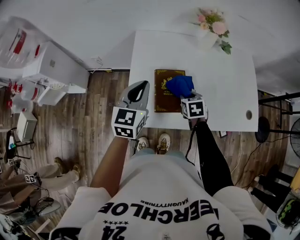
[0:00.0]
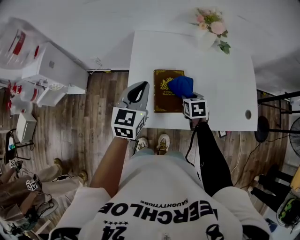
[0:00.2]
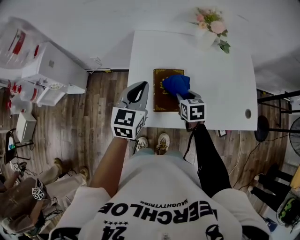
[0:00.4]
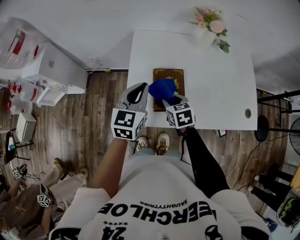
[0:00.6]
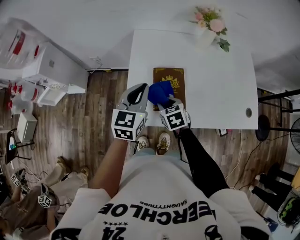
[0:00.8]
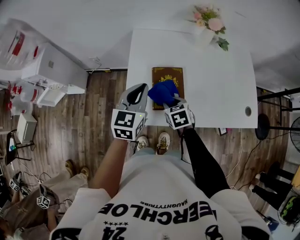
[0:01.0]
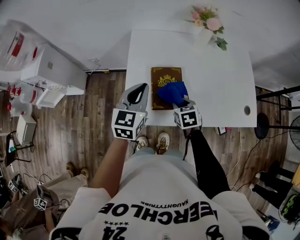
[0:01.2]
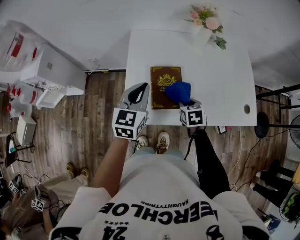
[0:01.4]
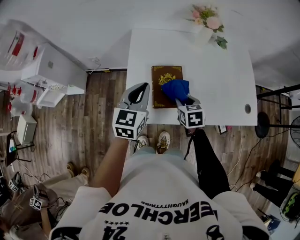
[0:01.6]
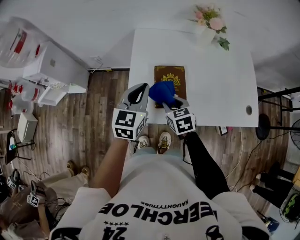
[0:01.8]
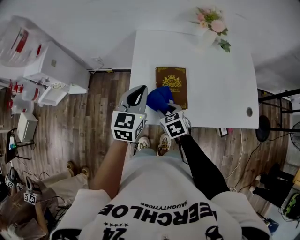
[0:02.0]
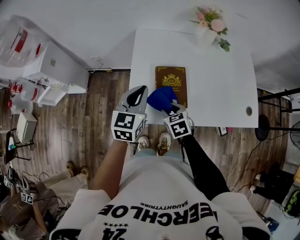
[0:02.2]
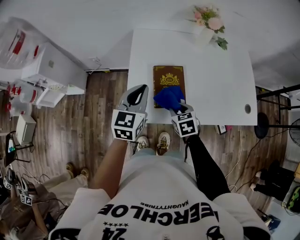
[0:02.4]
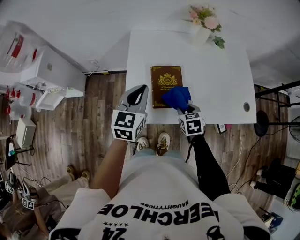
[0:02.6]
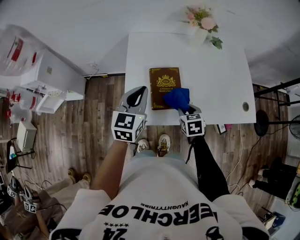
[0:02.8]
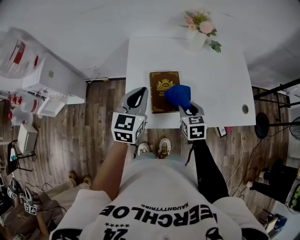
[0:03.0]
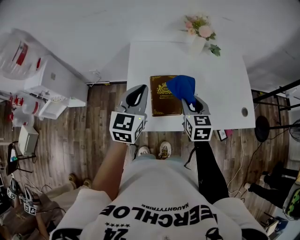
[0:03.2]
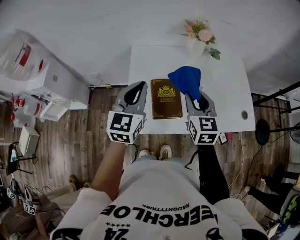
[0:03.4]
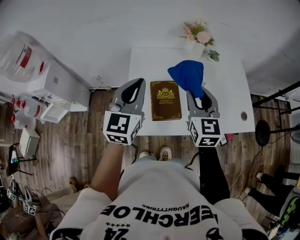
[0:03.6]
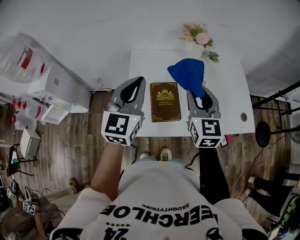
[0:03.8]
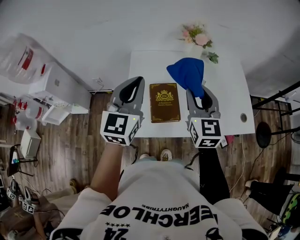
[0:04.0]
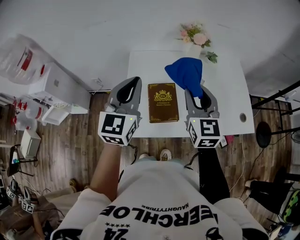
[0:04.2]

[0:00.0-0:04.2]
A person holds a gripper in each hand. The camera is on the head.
0:00.0 to 0:01.4: The right gripper heads backward, covering some 5 cm, and travels to the left and back again, some 10 cm each way.
0:01.4 to 0:02.8: The right gripper moves some 15 cm to the left and comes back.
0:02.8 to 0:04.2: The left gripper travels upward by about 15 cm, while the right gripper shifts roughly 30 cm upward, and angles its fingers upward, by roughly 40 degrees.

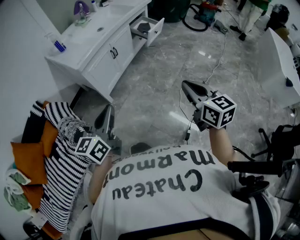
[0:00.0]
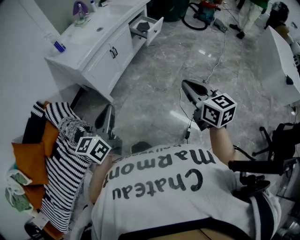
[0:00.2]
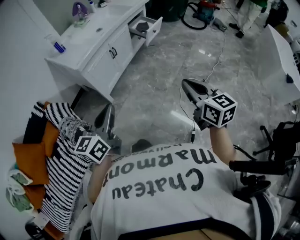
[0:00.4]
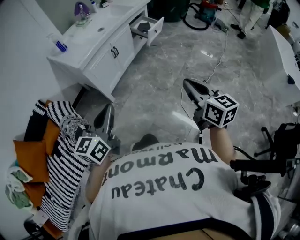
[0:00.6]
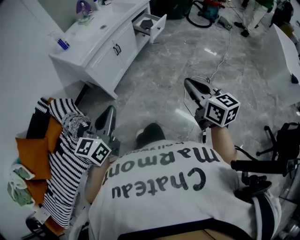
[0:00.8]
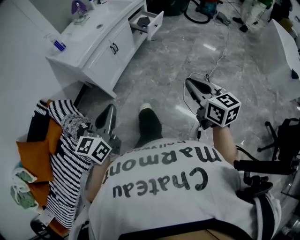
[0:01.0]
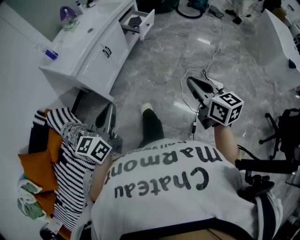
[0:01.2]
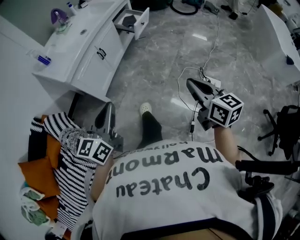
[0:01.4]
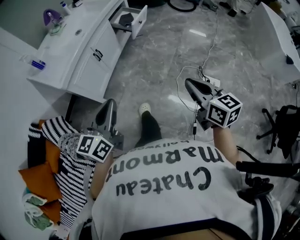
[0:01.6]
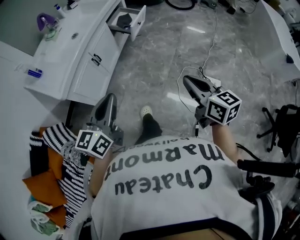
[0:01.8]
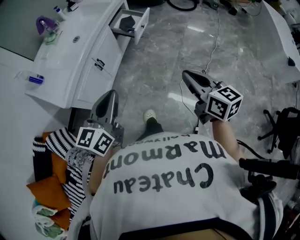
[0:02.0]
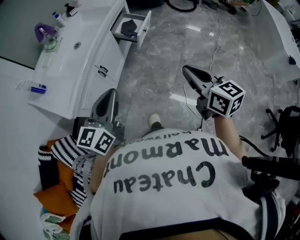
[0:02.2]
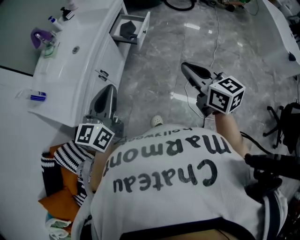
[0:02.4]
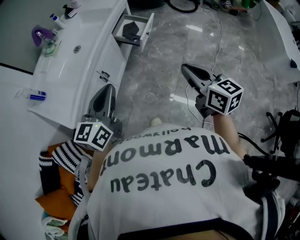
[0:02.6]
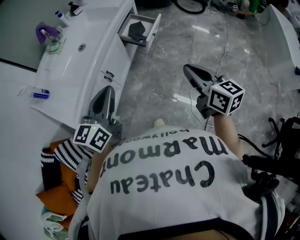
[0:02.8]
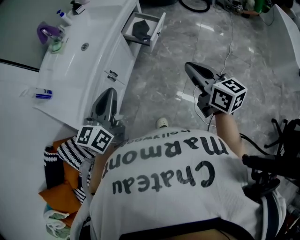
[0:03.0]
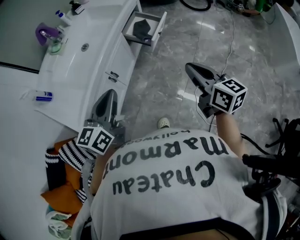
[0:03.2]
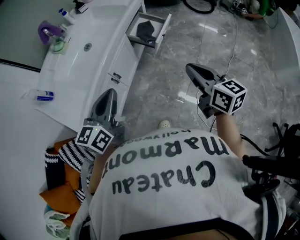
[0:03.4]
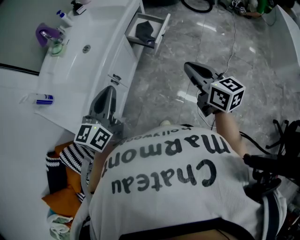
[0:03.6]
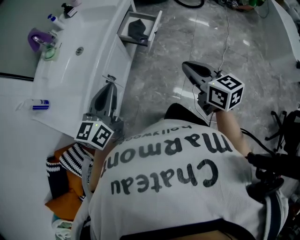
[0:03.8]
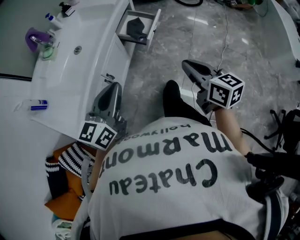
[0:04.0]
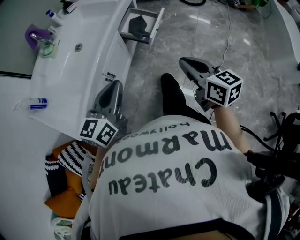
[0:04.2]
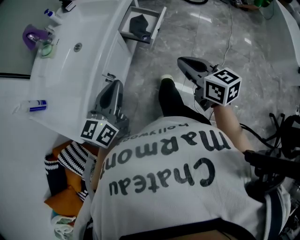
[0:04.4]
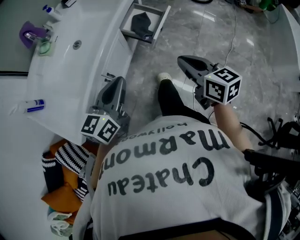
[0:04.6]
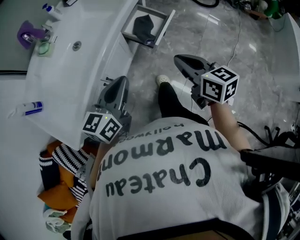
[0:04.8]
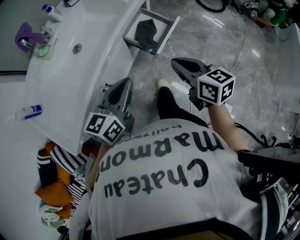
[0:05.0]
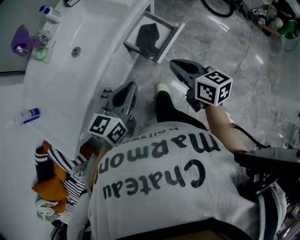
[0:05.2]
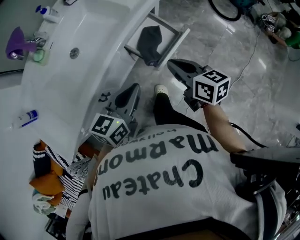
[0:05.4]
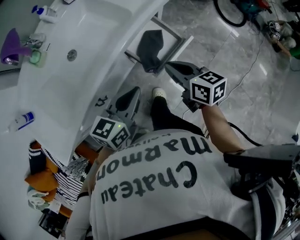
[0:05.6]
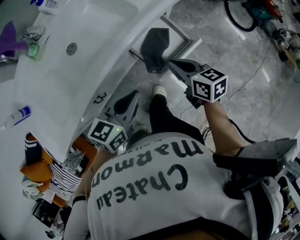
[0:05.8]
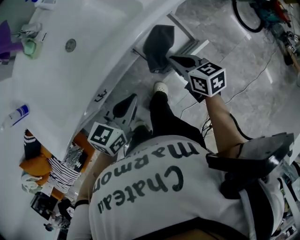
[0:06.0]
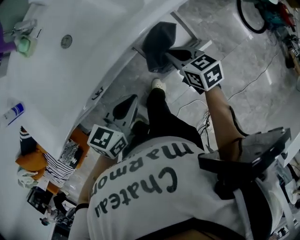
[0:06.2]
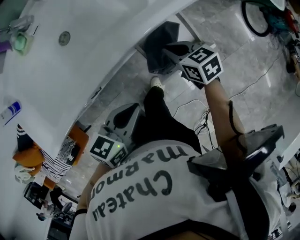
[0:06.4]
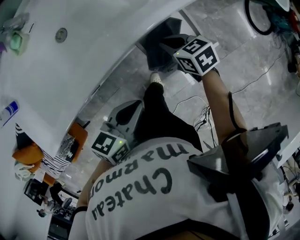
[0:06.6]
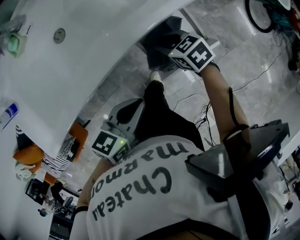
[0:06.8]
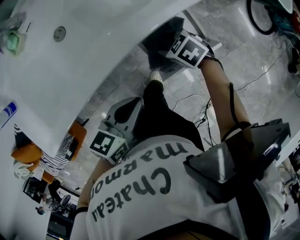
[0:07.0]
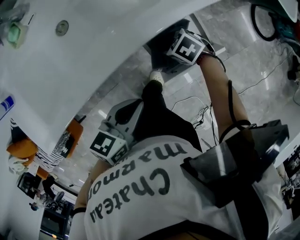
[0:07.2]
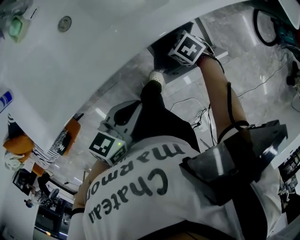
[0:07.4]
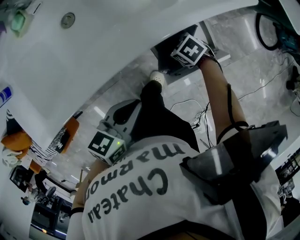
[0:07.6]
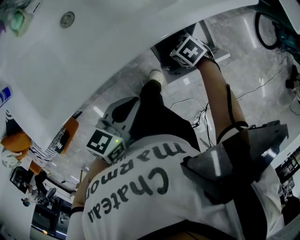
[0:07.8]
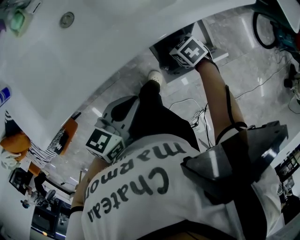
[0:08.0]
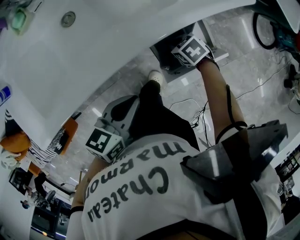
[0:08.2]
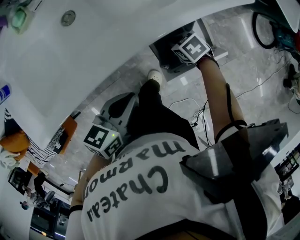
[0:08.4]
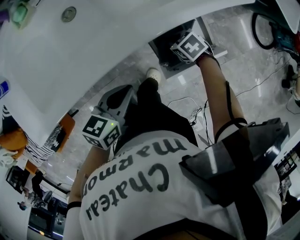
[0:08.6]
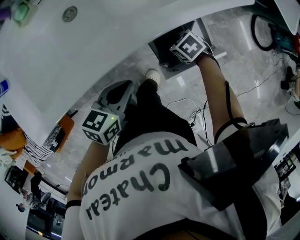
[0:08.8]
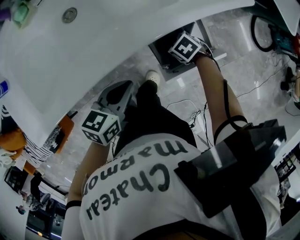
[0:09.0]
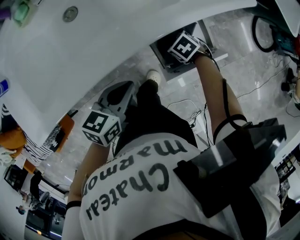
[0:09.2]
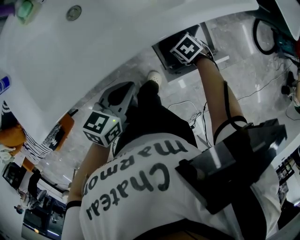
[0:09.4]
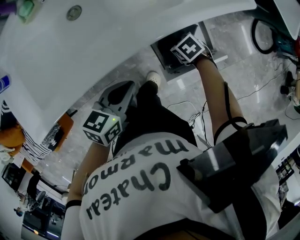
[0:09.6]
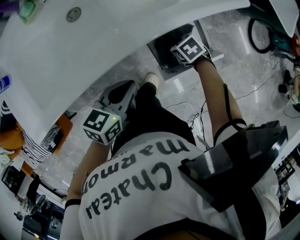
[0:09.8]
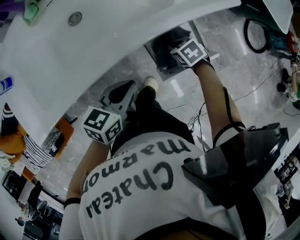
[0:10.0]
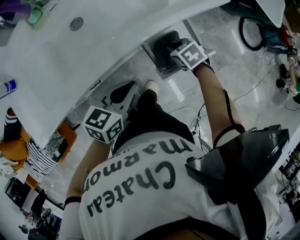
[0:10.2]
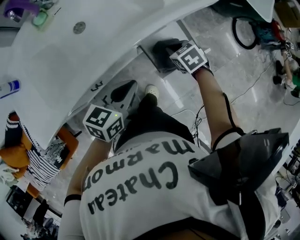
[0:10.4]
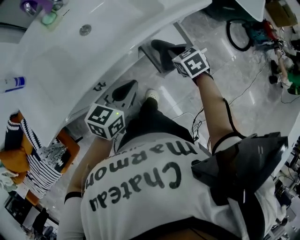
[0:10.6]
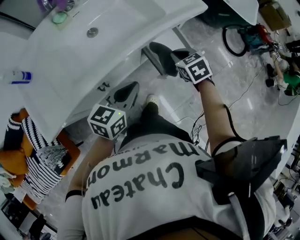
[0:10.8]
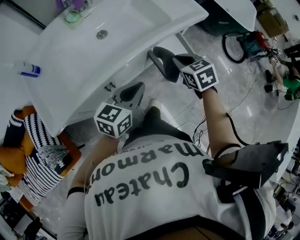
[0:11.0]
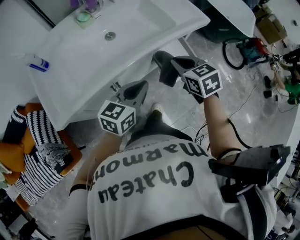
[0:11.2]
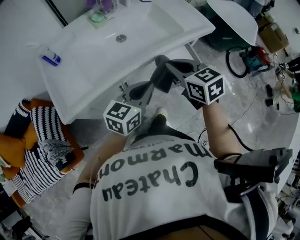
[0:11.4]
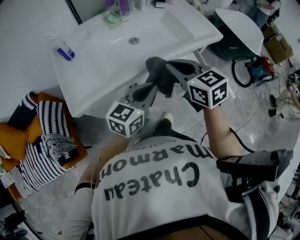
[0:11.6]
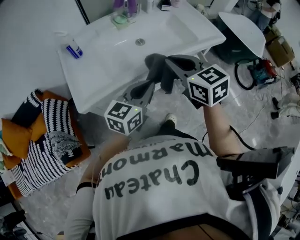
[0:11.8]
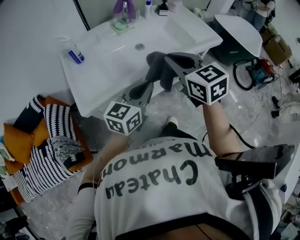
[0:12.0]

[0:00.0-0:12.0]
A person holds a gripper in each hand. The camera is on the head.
0:00.0 to 0:01.6: Both grippers move forward and to the right, roughly 10 cm.
0:01.6 to 0:03.0: Both grippers move forward, some 30 cm.
0:03.0 to 0:04.4: Both grippers travel together forward, some 10 cm.
0:04.4 to 0:06.0: The left gripper is displaced forward, downward and to the right by about 30 cm, and rotates roughly 30 degrees. The right gripper is displaced forward and downward by roughly 40 cm, and turns by roughly 40 degrees.
0:06.0 to 0:07.6: The right gripper travels downward by roughly 20 cm, changes its angle by roughly 50 degrees, and opens its fingers.
0:07.6 to 0:09.0: The left gripper changes place by about 5 cm, while the right gripper closes its fingers.
0:09.0 to 0:10.4: The right gripper heads upward, covering about 15 cm, rotates roughly 30 degrees, and closes. Meanwhile the left gripper shifts some 5 cm upward.
0:10.4 to 0:12.0: The right gripper heads upward, to the left and backward, covering some 50 cm, and angles its fingers upward, by roughly 40 degrees, while the left gripper heads to the left, upward and backward, covering about 25 cm, and rotates roughly 30 degrees.

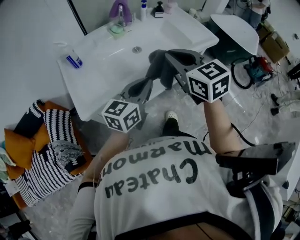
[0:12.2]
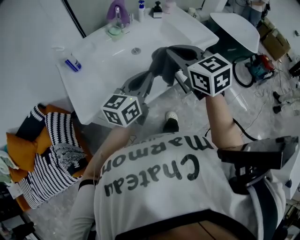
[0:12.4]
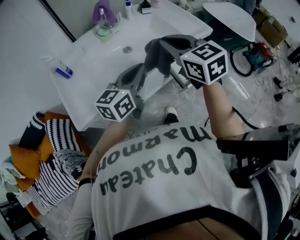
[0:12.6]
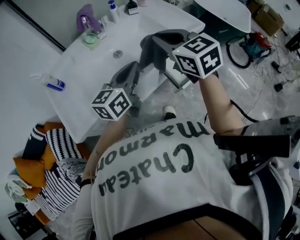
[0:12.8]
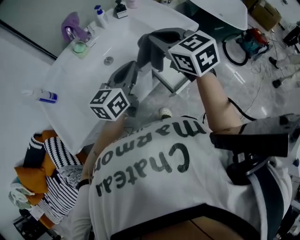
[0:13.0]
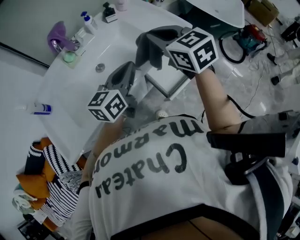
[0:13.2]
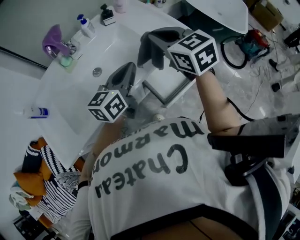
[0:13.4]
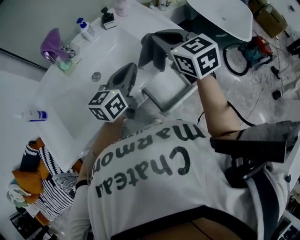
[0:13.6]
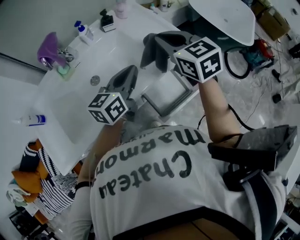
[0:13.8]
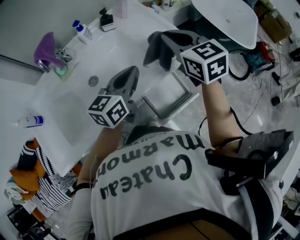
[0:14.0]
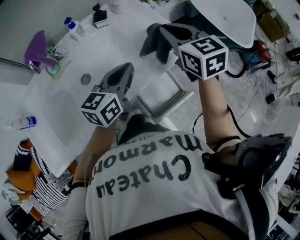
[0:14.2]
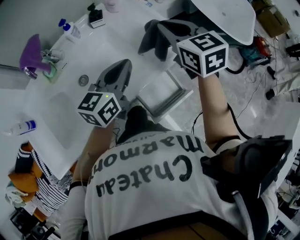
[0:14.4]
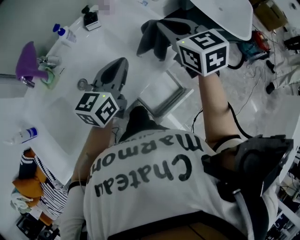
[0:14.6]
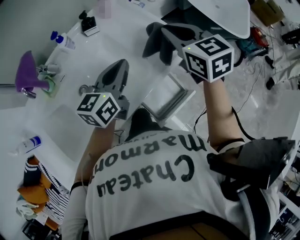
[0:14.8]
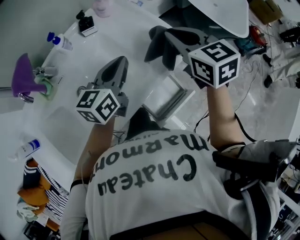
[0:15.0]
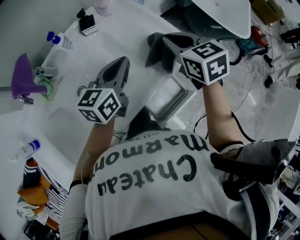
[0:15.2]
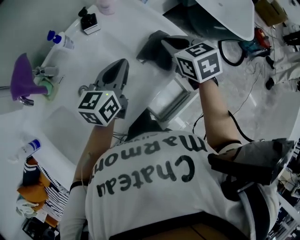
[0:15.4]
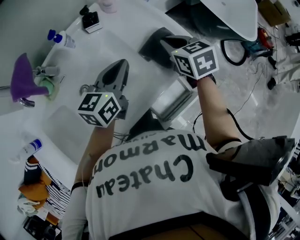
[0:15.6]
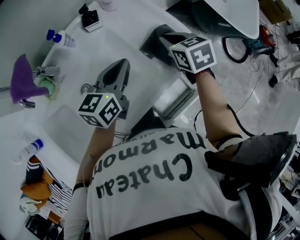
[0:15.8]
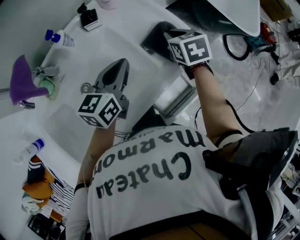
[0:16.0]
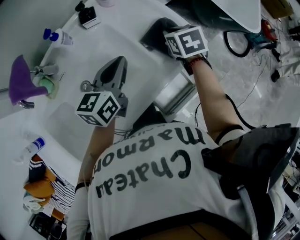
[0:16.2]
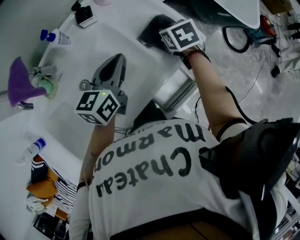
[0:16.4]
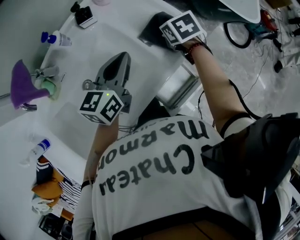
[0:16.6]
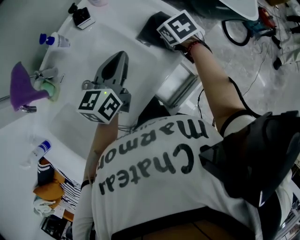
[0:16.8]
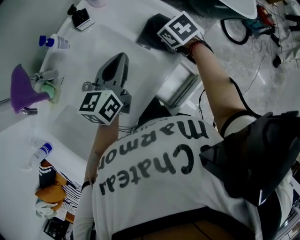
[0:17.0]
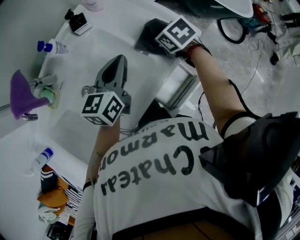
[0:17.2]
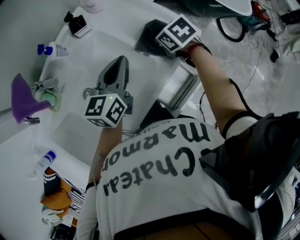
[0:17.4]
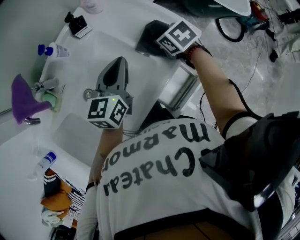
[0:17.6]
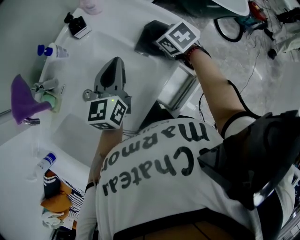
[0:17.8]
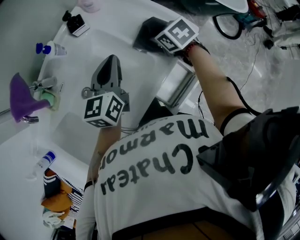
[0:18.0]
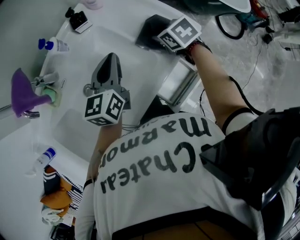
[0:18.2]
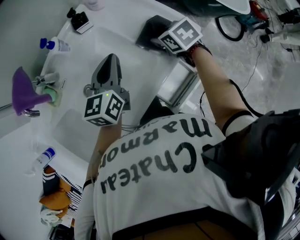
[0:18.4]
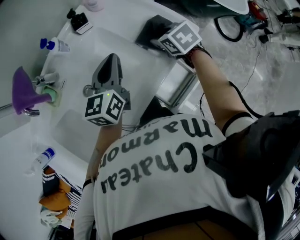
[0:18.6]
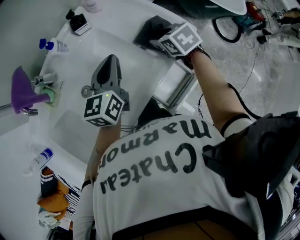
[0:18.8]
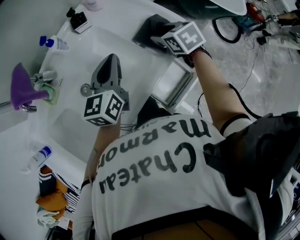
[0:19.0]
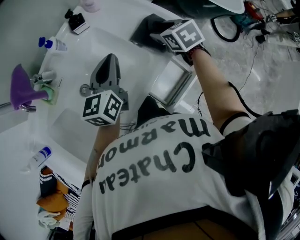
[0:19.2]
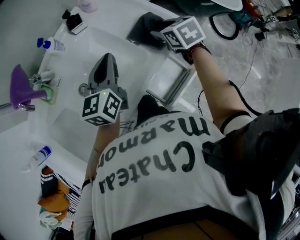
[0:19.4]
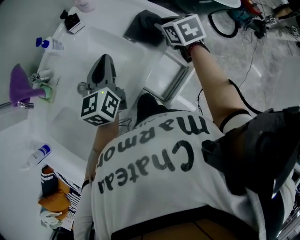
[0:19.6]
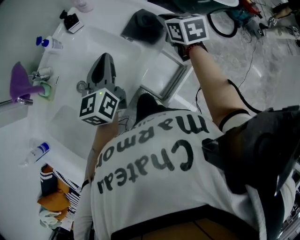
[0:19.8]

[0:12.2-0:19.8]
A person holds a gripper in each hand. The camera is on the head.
0:12.2 to 0:13.8: The two grippers go roughly 35 cm forward and to the right.
0:13.8 to 0:15.2: The right gripper heads forward and downward, covering roughly 10 cm; the left gripper travels forward by approximately 10 cm.
0:15.2 to 0:16.8: The right gripper travels downward by some 15 cm, and swivels approximately 30 degrees.
0:16.8 to 0:18.2: The grippers make only small movements.
0:18.2 to 0:19.8: The left gripper goes some 5 cm backward; the right gripper heads upward and to the right, covering some 10 cm, rotates some 30 degrees, and opens and closes again.
